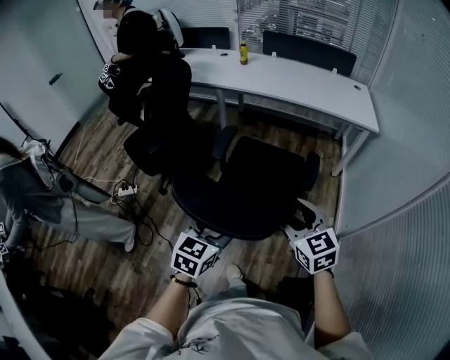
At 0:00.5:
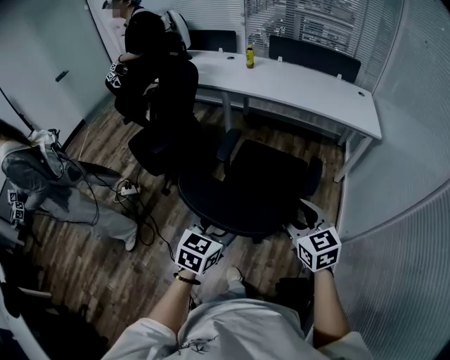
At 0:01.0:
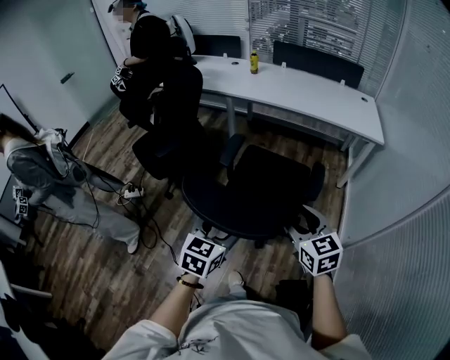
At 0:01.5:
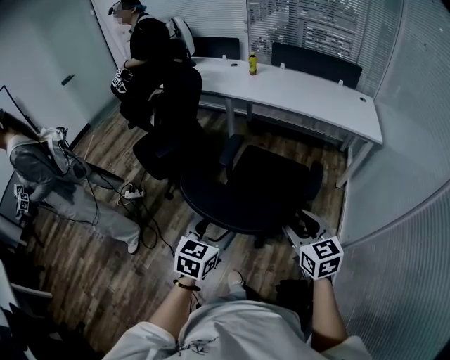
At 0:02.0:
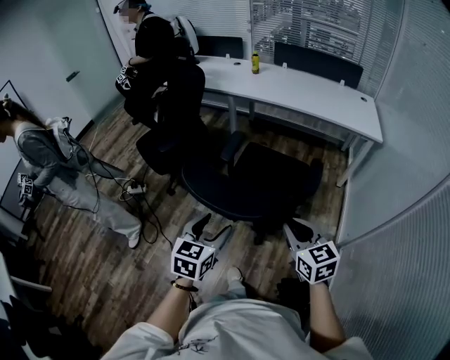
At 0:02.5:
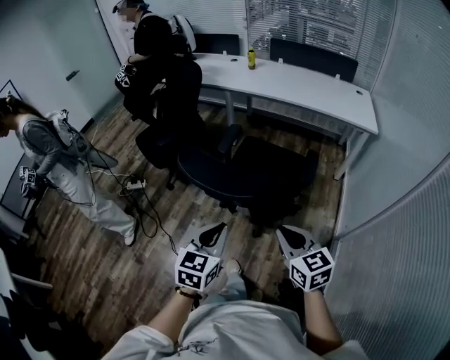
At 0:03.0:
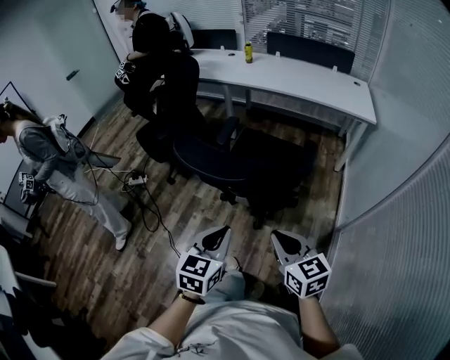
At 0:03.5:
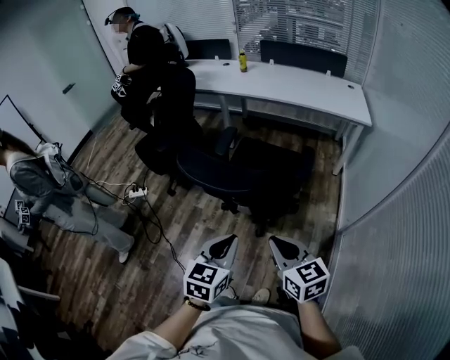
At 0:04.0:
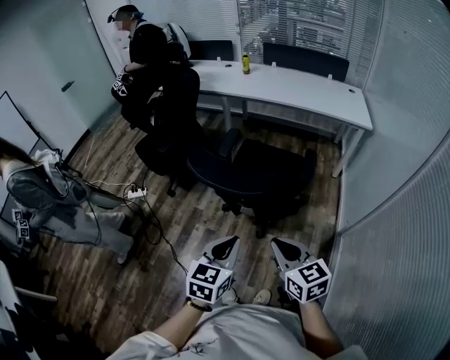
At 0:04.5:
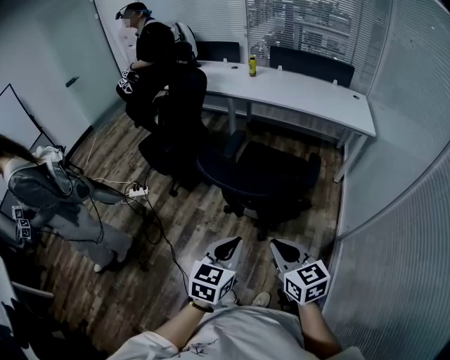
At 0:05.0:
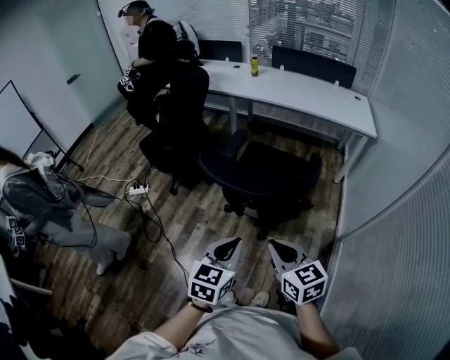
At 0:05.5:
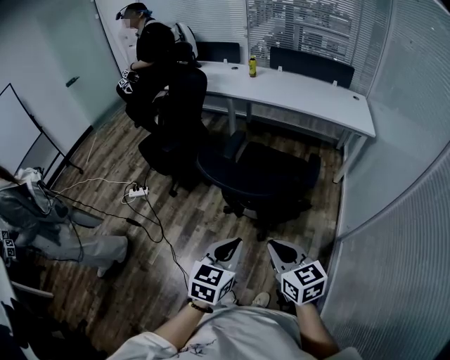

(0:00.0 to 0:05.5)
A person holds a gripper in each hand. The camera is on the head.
0:00.0 - 0:02.0: The left gripper ends up about 5 cm from where it was, while the right gripper goes roughly 5 cm backward, and closes up.
0:02.0 - 0:03.5: The left gripper shifts roughly 15 cm backward and to the right, and closes up. Meanwhile the right gripper moves backward, roughly 15 cm.
0:03.5 - 0:05.5: The right gripper heads to the left, covering some 5 cm.

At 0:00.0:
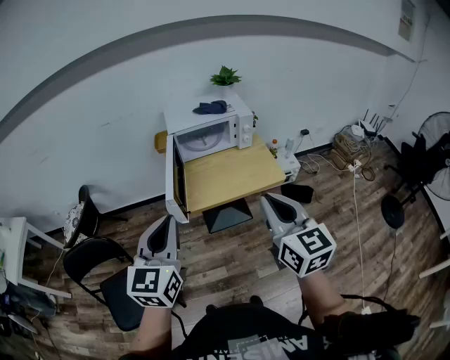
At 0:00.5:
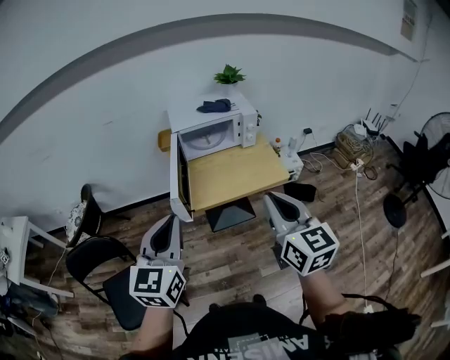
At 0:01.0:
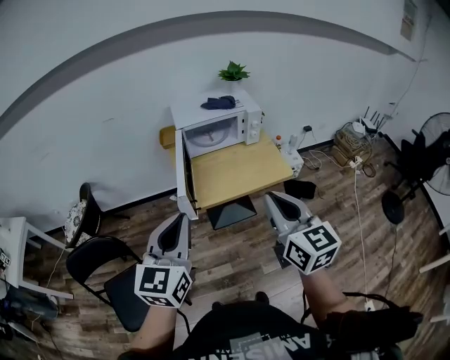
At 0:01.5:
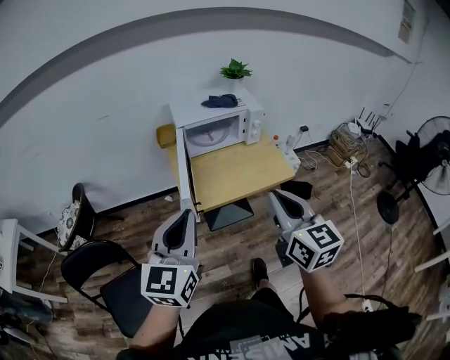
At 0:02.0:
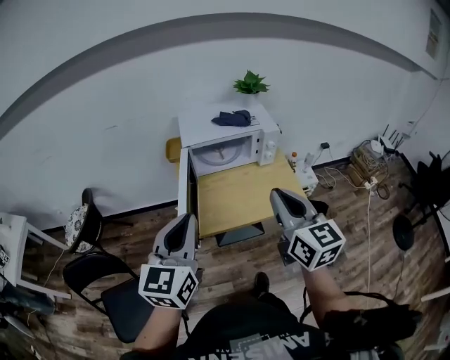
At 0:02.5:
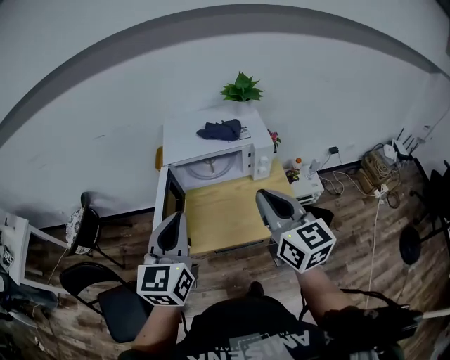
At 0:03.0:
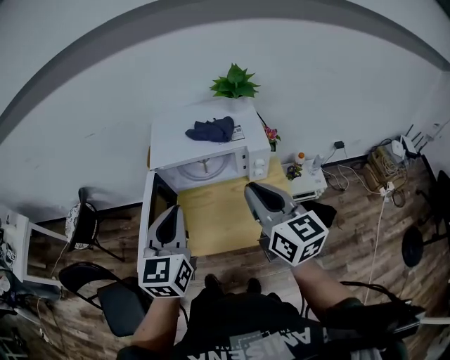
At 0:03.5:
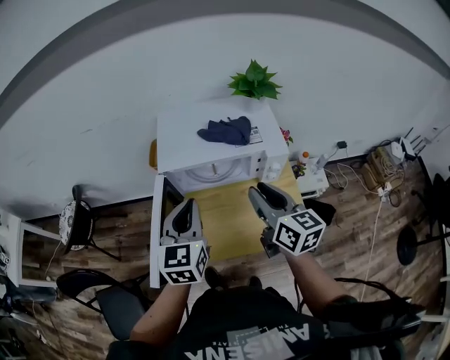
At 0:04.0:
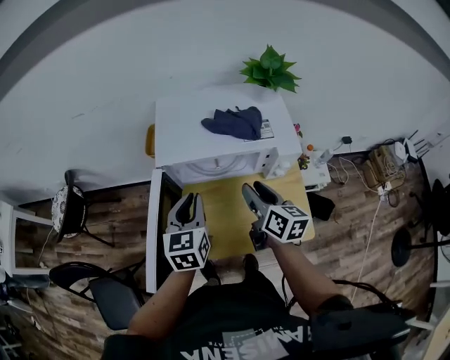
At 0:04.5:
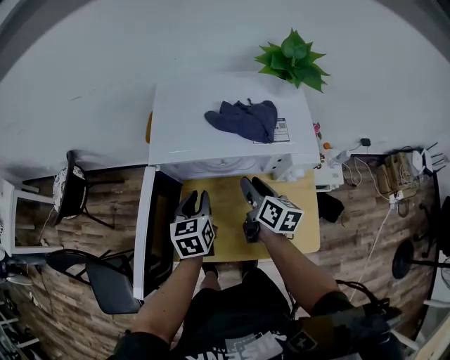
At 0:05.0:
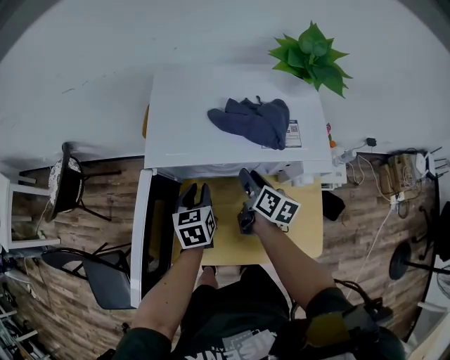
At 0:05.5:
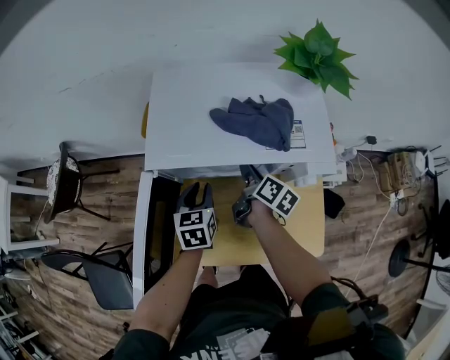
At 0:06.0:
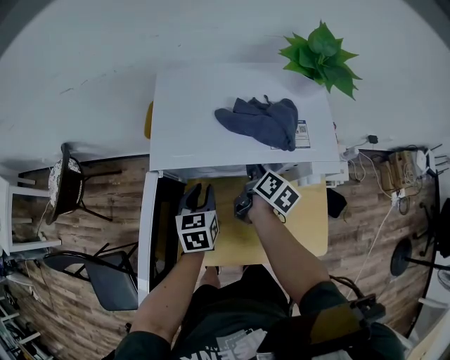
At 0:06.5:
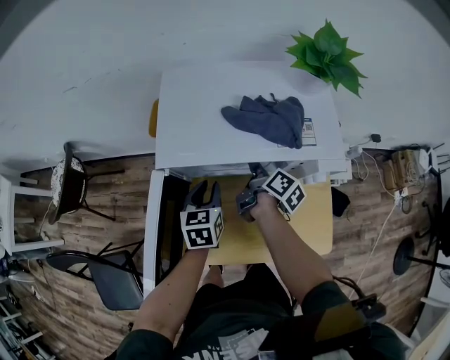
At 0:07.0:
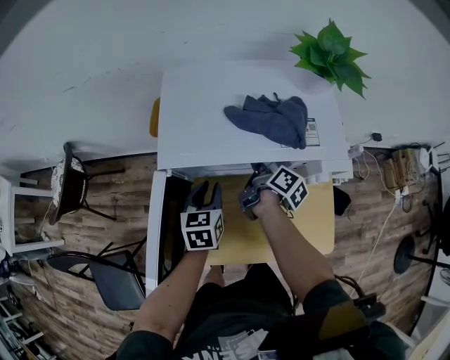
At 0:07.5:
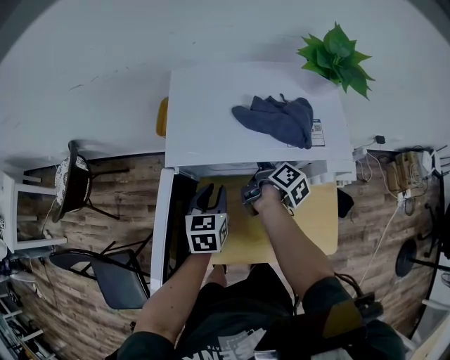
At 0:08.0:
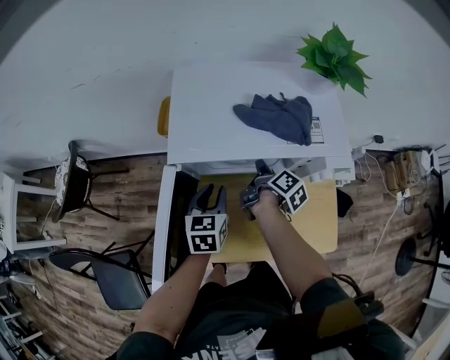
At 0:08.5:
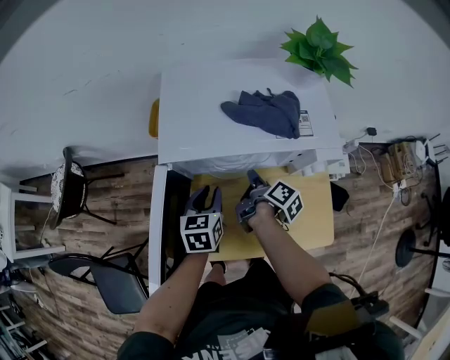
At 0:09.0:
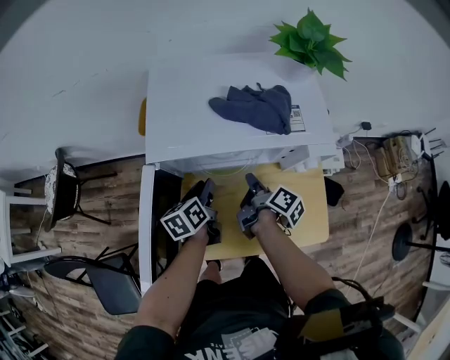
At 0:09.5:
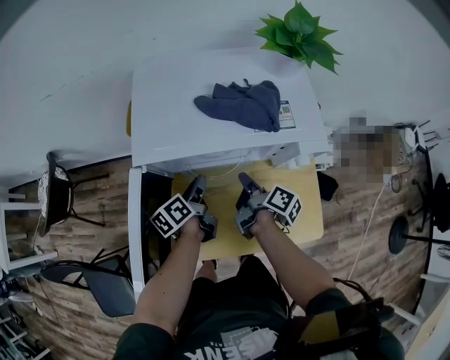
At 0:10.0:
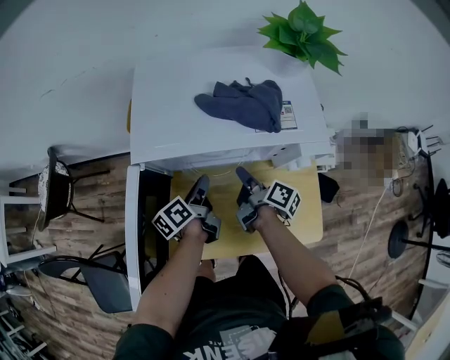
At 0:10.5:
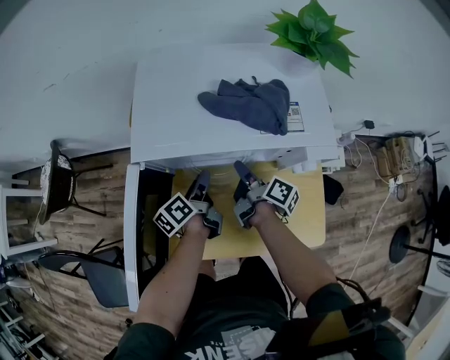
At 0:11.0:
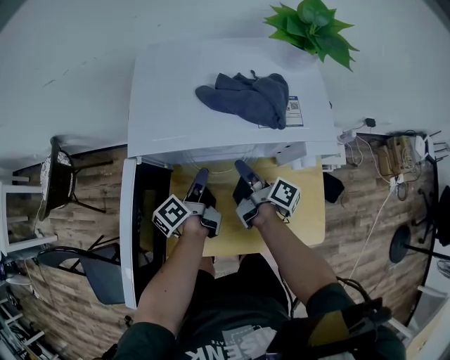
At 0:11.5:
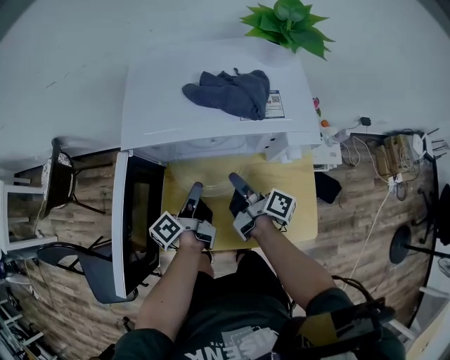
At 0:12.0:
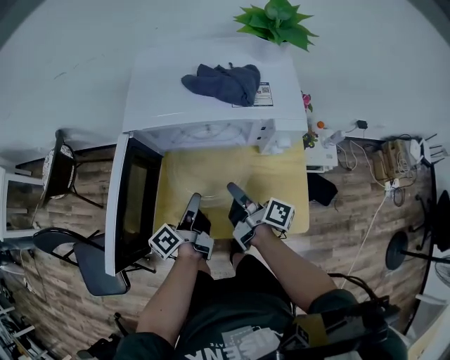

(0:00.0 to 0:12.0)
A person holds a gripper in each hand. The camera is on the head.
0:00.0 - 0:02.0: Both grippers move forward, some 15 cm.
0:02.0 - 0:04.0: The grippers both shift forward and downward by approximately 35 cm. The right gripper rotates roughly 30 degrees, and opens its fingers. Meanwhile the left gripper turns by approximately 30 degrees.
0:04.0 - 0:06.0: Both grippers move downward and forward, some 20 cm. The right gripper turns by roughly 30 degrees.
0:06.0 - 0:08.0: The right gripper swivels about 20 degrees.
0:08.0 - 0:10.0: The right gripper heads backward, covering approximately 5 cm. The left gripper heads downward, covering approximately 5 cm, and rolls counterclockwise, seen from behind, by some 50 degrees.
0:10.0 - 0:12.0: The right gripper goes approximately 10 cm backward and upward, and rotates approximately 20 degrees. The left gripper travels backward by about 10 cm, and changes its angle by approximately 30 degrees.

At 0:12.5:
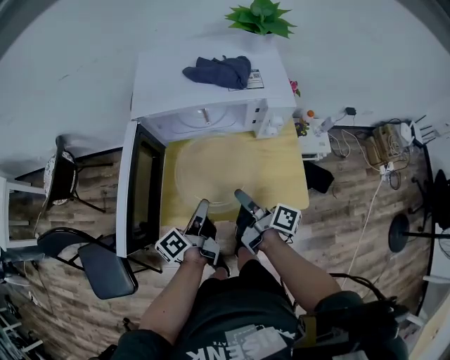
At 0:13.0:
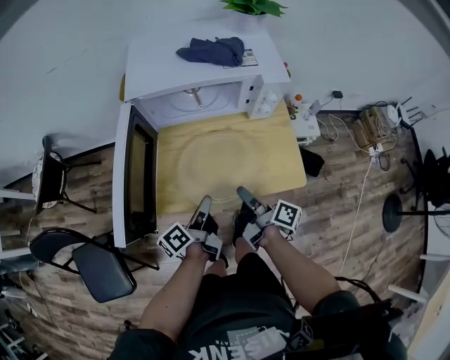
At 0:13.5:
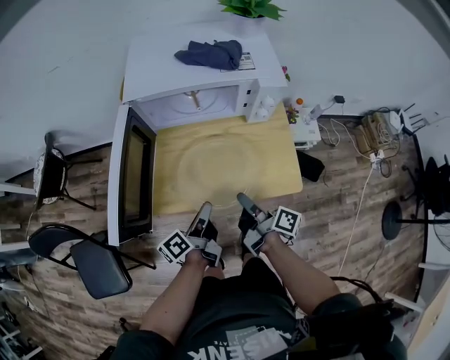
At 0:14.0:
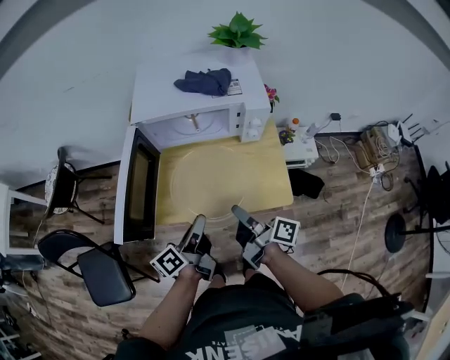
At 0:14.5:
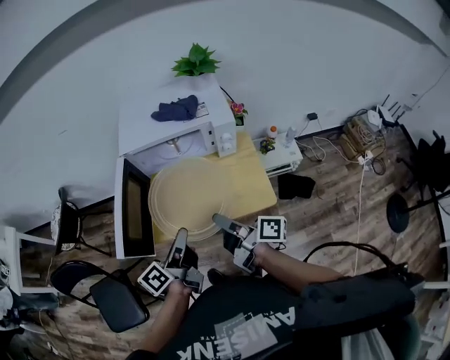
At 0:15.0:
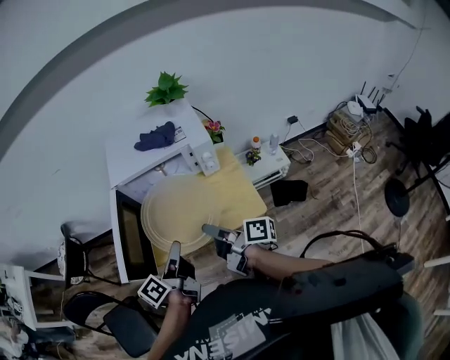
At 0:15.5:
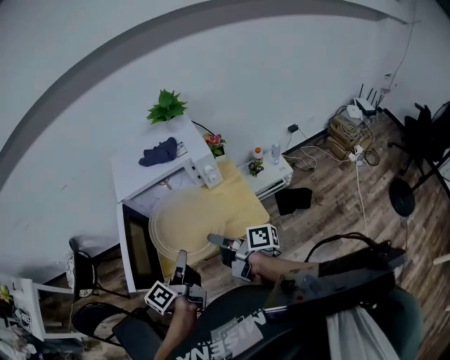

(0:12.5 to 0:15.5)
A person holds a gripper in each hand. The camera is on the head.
0:12.5 - 0:14.0: The right gripper goes approximately 10 cm backward and upward. Meanwhile the left gripper shifts approximately 10 cm backward.
0:14.0 - 0:15.5: The right gripper moves upward, roughly 5 cm, while the left gripper moves upward, roughly 10 cm.

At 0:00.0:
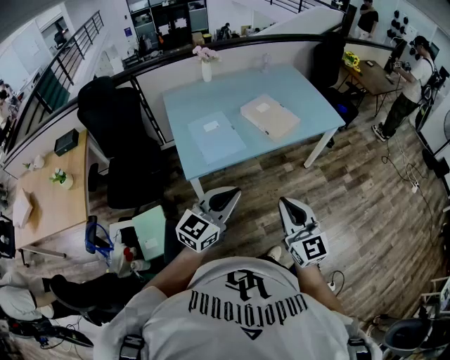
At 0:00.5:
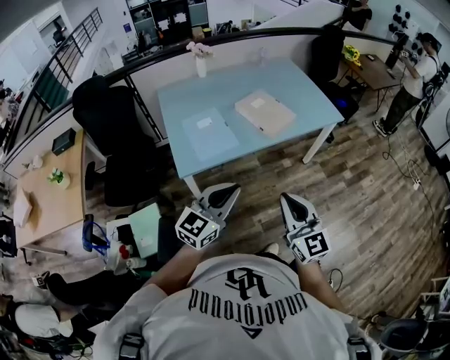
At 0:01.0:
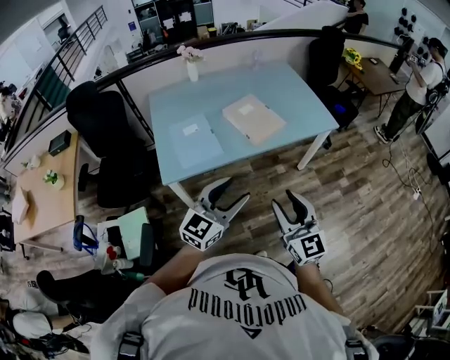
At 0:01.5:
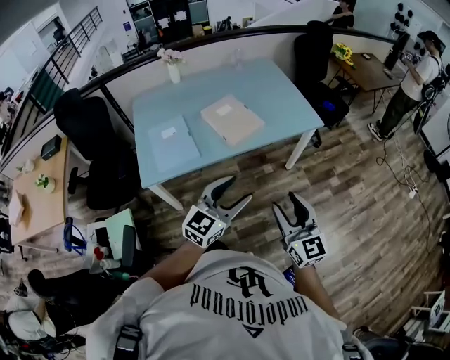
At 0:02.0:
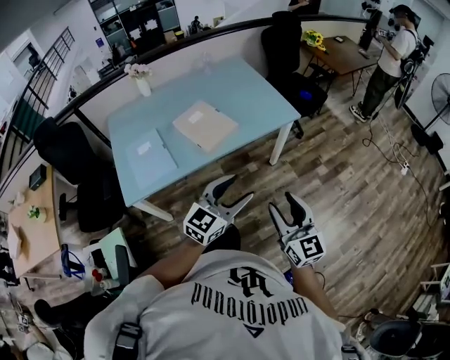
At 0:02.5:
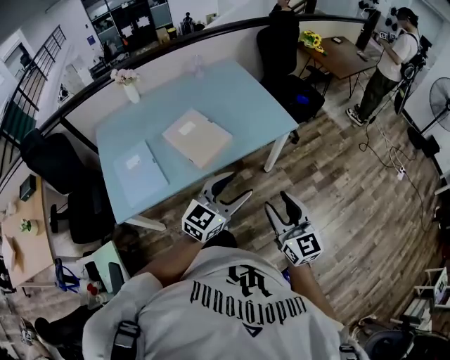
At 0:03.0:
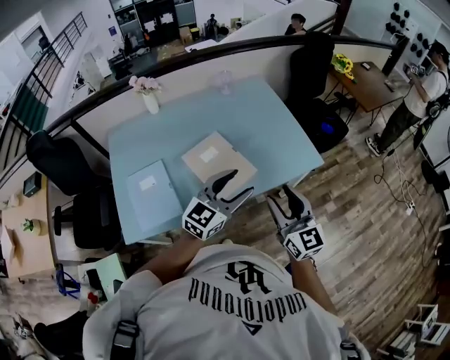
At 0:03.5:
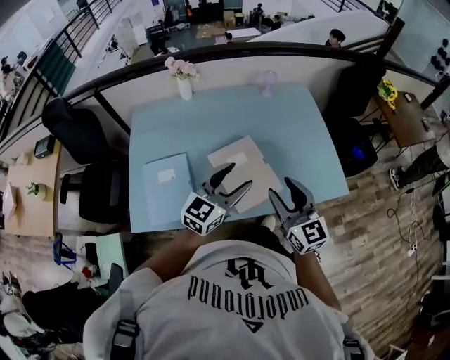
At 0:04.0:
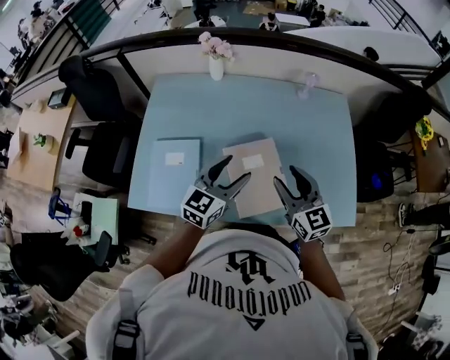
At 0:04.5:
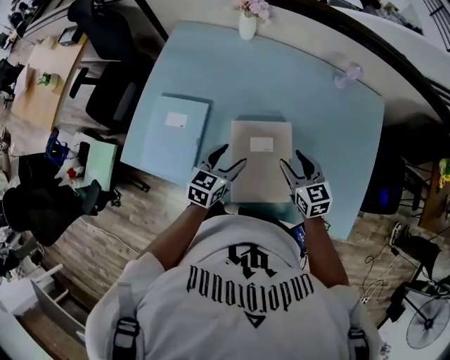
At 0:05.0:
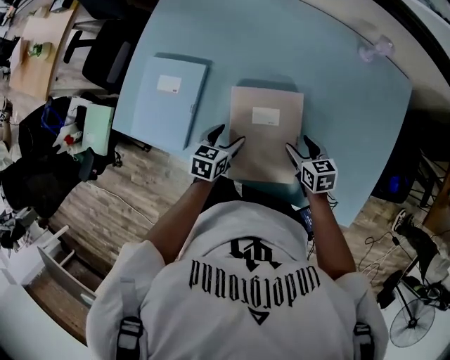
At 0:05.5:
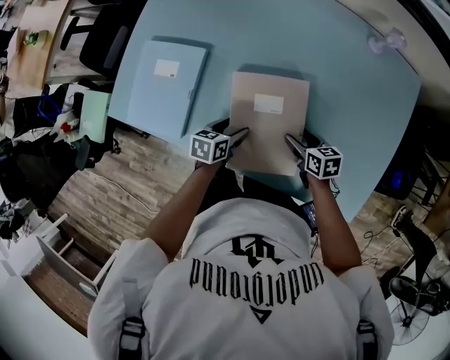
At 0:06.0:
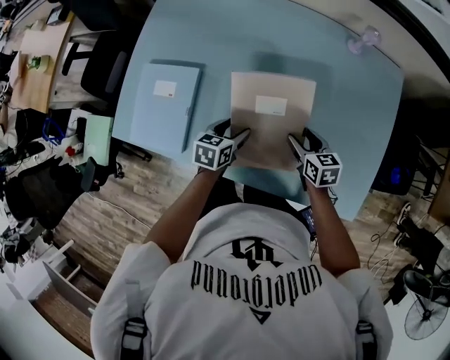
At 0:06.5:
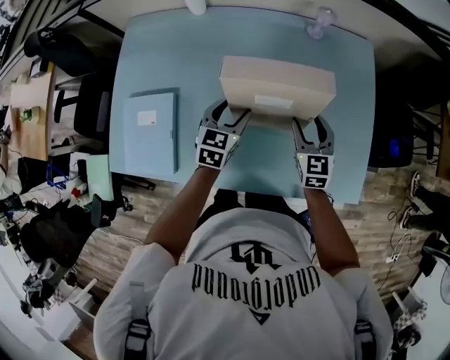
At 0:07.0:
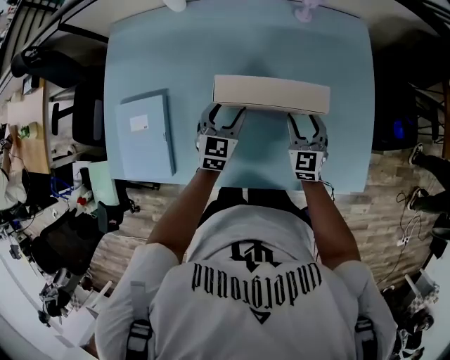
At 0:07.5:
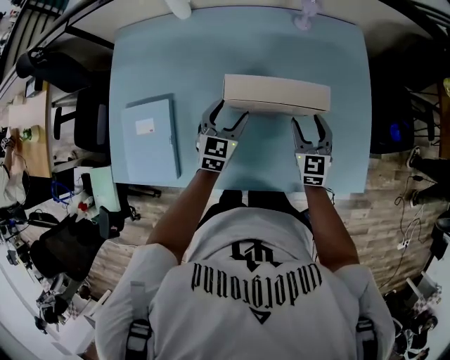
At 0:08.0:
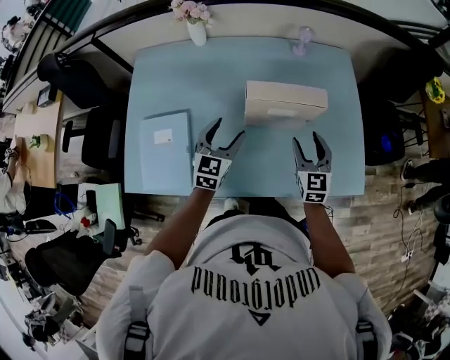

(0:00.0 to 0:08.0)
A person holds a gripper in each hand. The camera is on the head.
0:00.0 - 0:02.0: Both grippers move to the right and forward, approximately 40 cm. The left gripper opens its fingers; the right gripper opens its fingers.
0:02.0 - 0:04.0: The two grippers travel together, roughly 60 cm. The right gripper turns by approximately 40 degrees. The left gripper turns by approximately 40 degrees.
0:04.0 - 0:06.0: The grippers both shift downward by some 25 cm. The left gripper angles its fingers downward, by about 30 degrees. Meanwhile the right gripper tips its fingers downward by approximately 30 degrees.
0:06.0 - 0:08.0: The right gripper swings up and down, approximately 15 cm each way, with 2 reversals, and swivels approximately 50 degrees. The left gripper moves upward, approximately 15 cm, and changes its angle by about 40 degrees.
